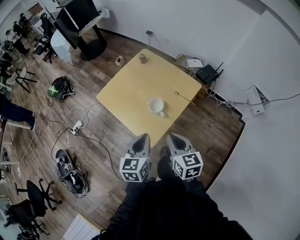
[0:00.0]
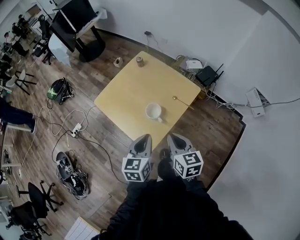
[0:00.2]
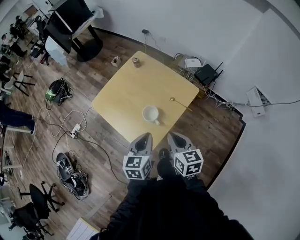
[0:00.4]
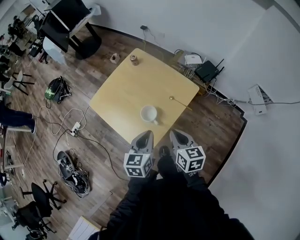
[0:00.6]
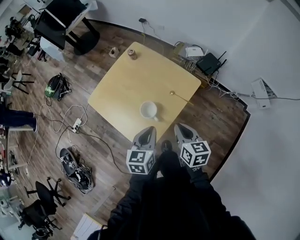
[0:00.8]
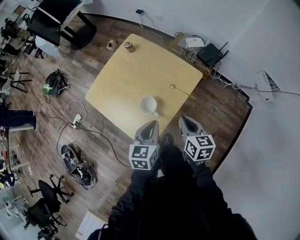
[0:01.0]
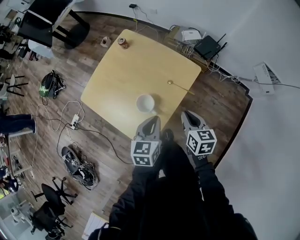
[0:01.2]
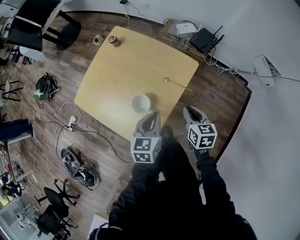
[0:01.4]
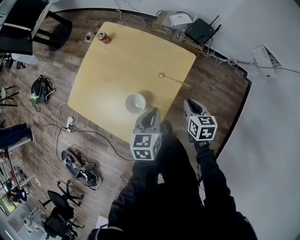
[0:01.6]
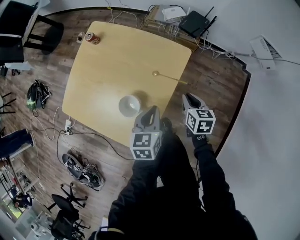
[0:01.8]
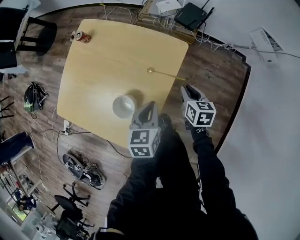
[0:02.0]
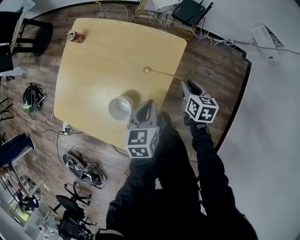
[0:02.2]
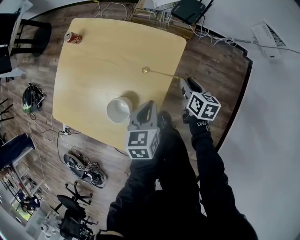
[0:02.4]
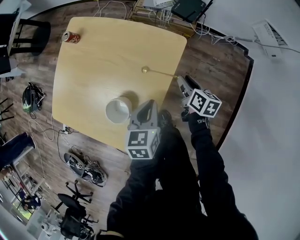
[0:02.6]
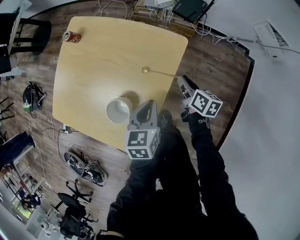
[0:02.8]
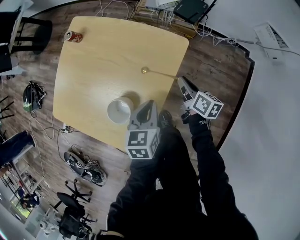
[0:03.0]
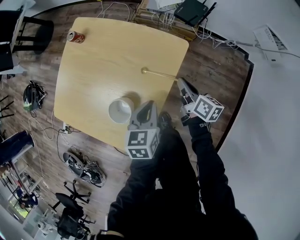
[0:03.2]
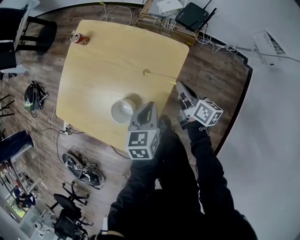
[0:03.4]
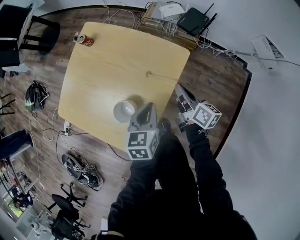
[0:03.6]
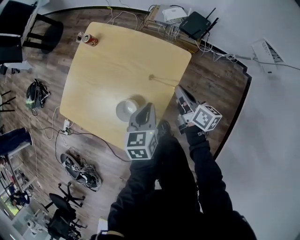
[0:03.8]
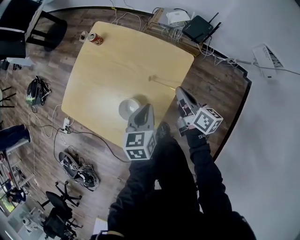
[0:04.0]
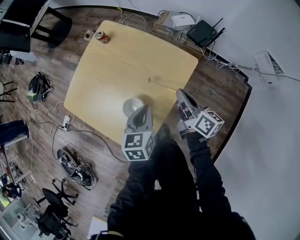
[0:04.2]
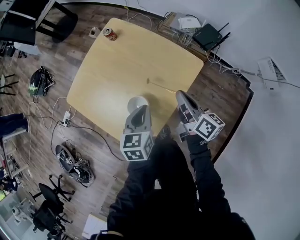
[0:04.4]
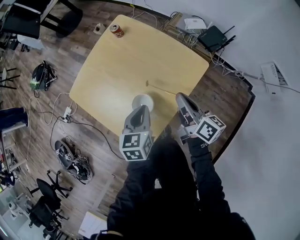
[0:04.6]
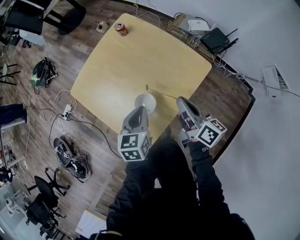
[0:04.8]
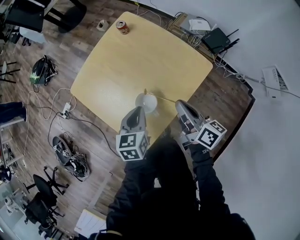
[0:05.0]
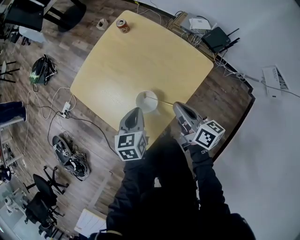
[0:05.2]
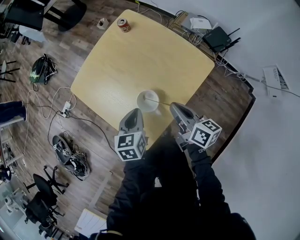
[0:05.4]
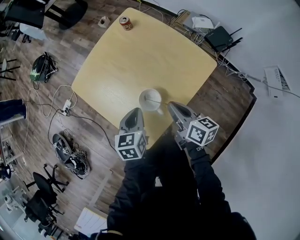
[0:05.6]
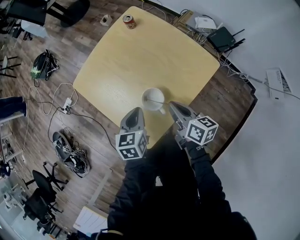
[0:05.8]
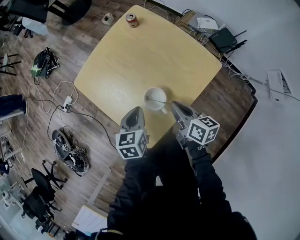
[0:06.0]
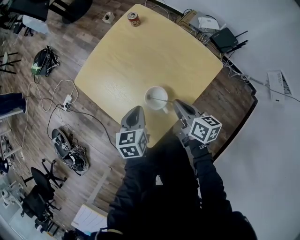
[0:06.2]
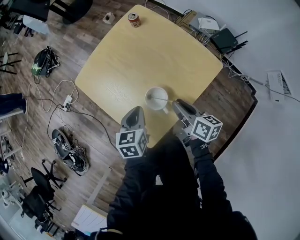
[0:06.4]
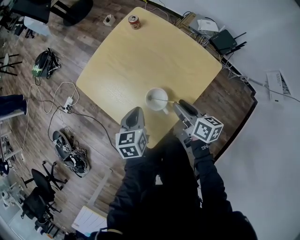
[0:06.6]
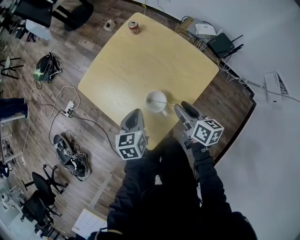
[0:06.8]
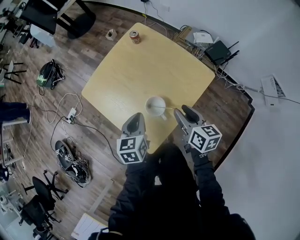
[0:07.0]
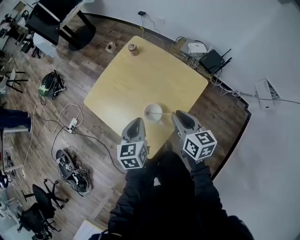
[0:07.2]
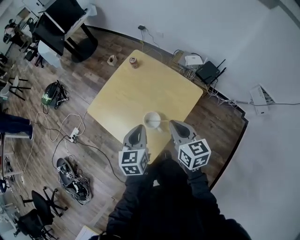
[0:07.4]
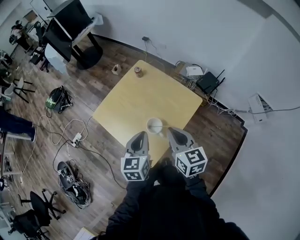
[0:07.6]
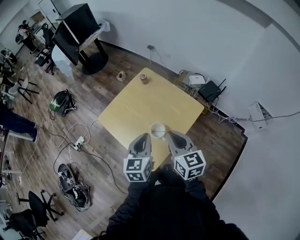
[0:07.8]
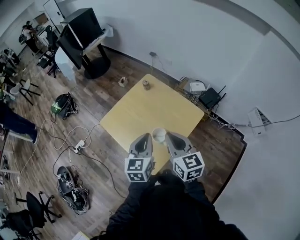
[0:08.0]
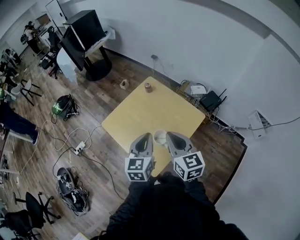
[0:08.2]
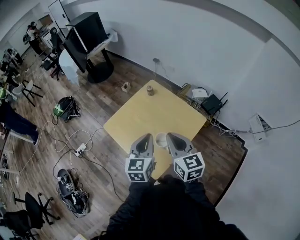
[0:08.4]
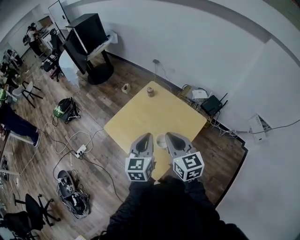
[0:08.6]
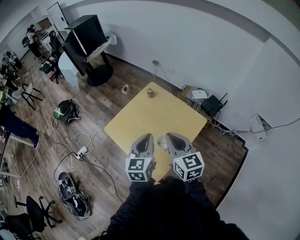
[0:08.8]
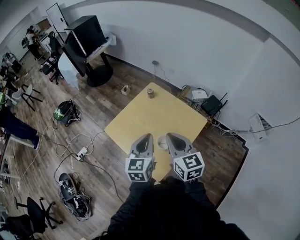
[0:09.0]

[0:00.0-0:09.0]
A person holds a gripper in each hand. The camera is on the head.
0:00.0 to 0:01.6: The left gripper goes about 30 cm forward, downward and to the right. Meanwhile the right gripper shifts about 35 cm downward, forward and to the right, and changes its angle by about 30 degrees.
0:01.6 to 0:03.0: The left gripper goes roughly 10 cm downward. The right gripper goes approximately 15 cm downward and forward, rotates roughly 40 degrees, and opens, then closes once more.
0:03.0 to 0:04.4: The left gripper travels to the left and upward by roughly 10 cm. The right gripper goes approximately 20 cm upward and to the left, and rotates roughly 20 degrees.
0:04.4 to 0:06.0: Both grippers travel together to the left, roughly 10 cm. The right gripper rotates some 20 degrees.
0:06.0 to 0:07.6: The grippers both shift upward by about 20 cm. The right gripper rotates some 30 degrees, and opens, then closes again.
0:07.6 to 0:09.0: The left gripper moves upward, about 10 cm. Meanwhile the right gripper is displaced upward and to the left by some 10 cm.

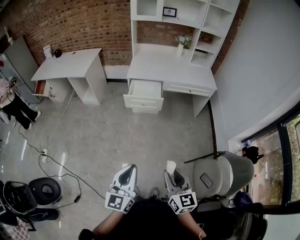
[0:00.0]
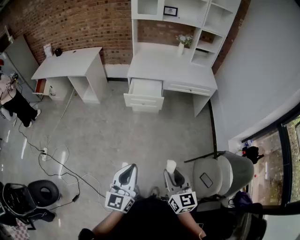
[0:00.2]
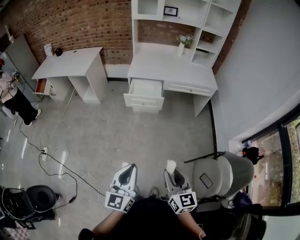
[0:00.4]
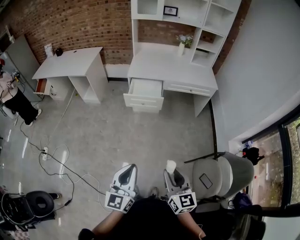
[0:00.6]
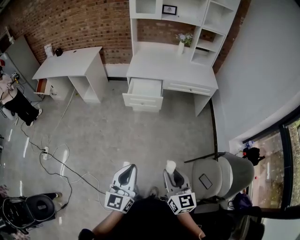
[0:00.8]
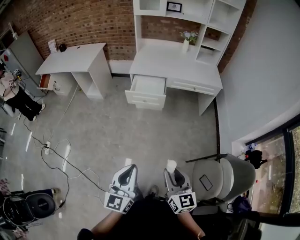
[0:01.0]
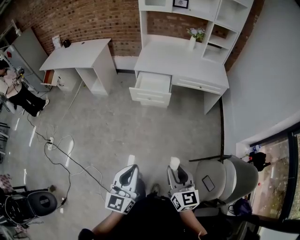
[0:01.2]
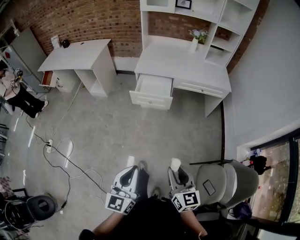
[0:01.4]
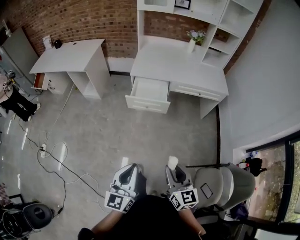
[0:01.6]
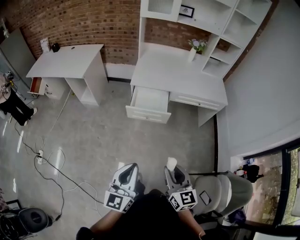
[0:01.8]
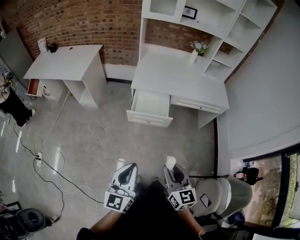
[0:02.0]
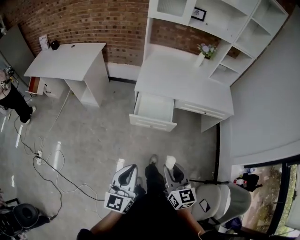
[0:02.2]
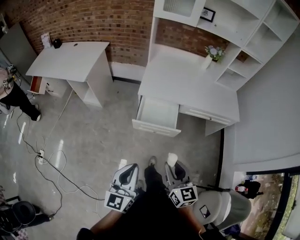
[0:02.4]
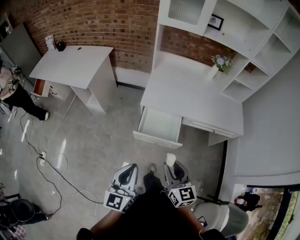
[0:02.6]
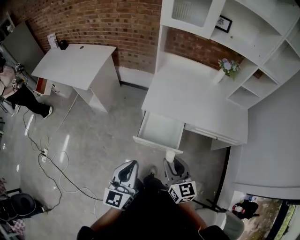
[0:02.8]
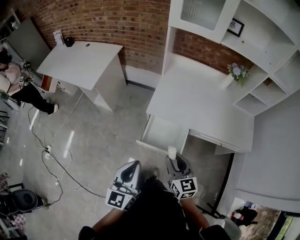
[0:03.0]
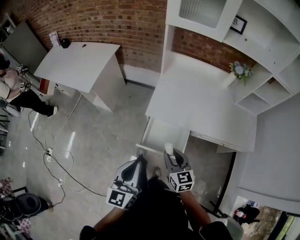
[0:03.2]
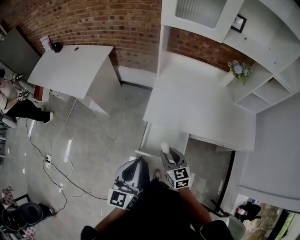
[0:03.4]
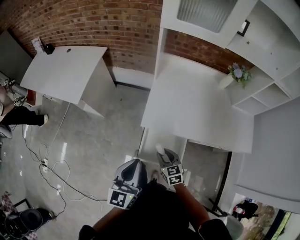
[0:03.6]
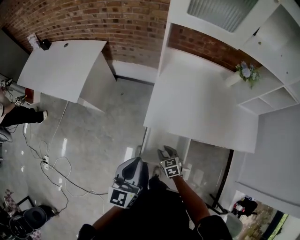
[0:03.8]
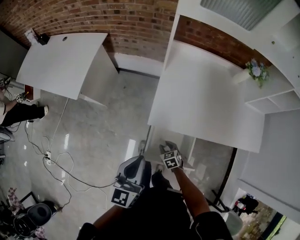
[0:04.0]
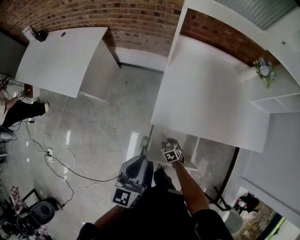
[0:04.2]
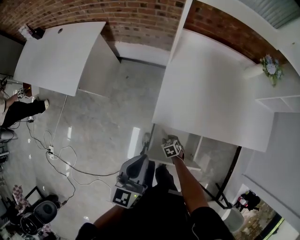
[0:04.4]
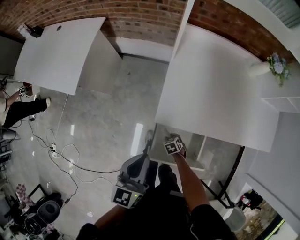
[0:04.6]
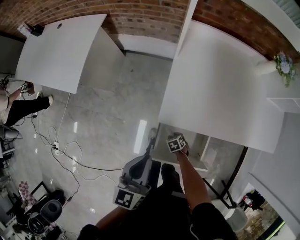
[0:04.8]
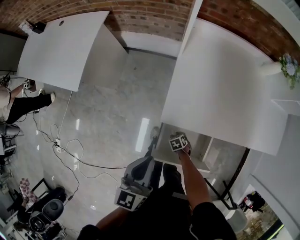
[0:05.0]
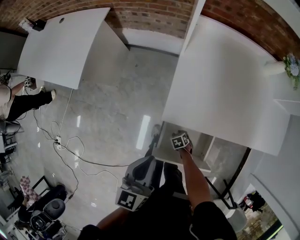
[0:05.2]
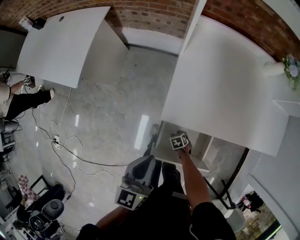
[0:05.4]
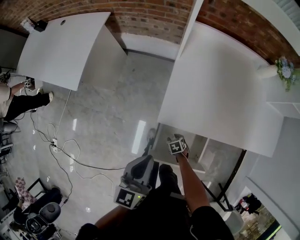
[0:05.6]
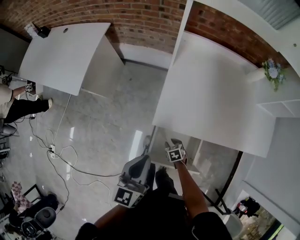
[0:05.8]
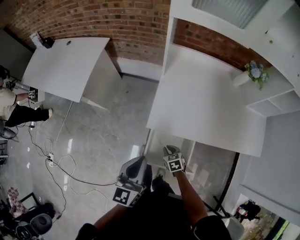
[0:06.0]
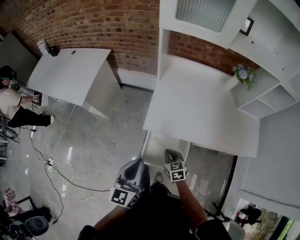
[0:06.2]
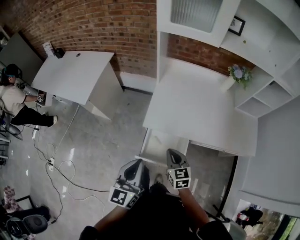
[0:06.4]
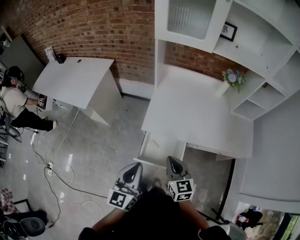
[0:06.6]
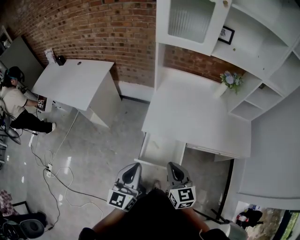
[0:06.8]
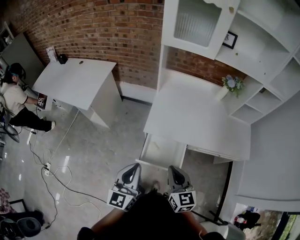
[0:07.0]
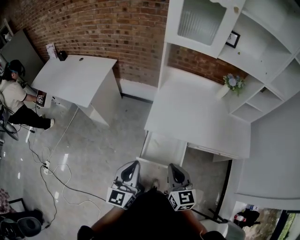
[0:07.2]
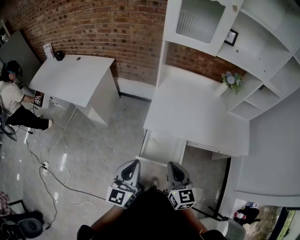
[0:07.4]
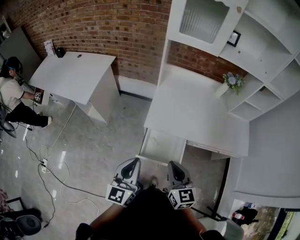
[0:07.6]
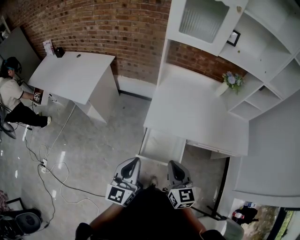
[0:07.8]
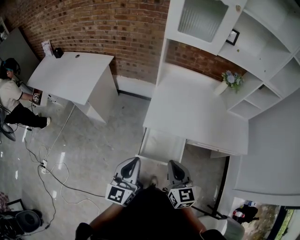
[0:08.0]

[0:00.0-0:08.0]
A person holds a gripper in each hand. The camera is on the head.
0:00.0 to 0:01.6: Both grippers move forward, approximately 15 cm.
0:01.6 to 0:03.2: The pair of grippers is taken forward, roughly 50 cm.
0:03.2 to 0:04.8: The right gripper travels downward by about 50 cm, and tilts its fingers about 50 degrees downward. Meanwhile the left gripper changes place by roughly 30 cm.
0:04.8 to 0:06.4: The left gripper moves approximately 20 cm. Meanwhile the right gripper is displaced upward by about 40 cm, tips its fingers upward by approximately 50 degrees, and closes.
0:06.4 to 0:08.0: The left gripper heads to the left, covering approximately 5 cm, while the right gripper is displaced upward and backward by some 15 cm.

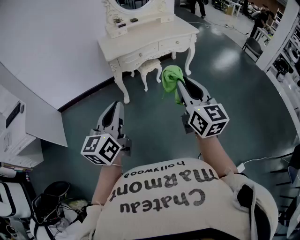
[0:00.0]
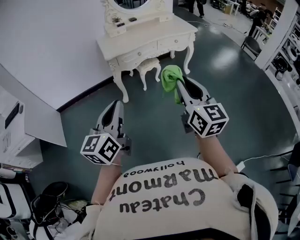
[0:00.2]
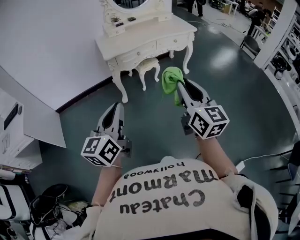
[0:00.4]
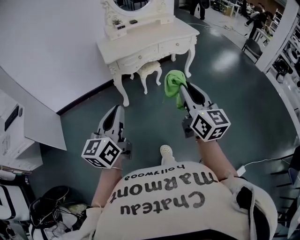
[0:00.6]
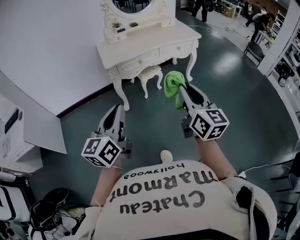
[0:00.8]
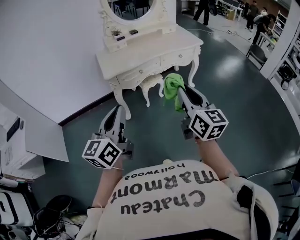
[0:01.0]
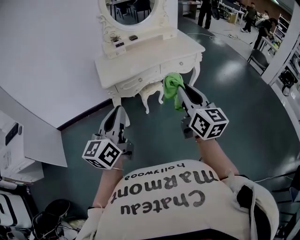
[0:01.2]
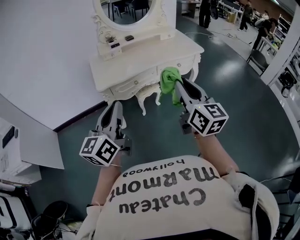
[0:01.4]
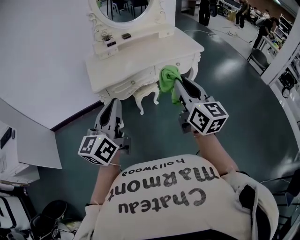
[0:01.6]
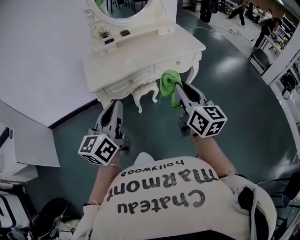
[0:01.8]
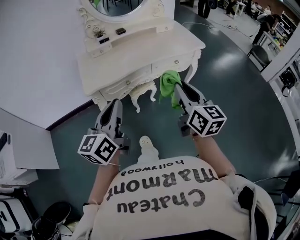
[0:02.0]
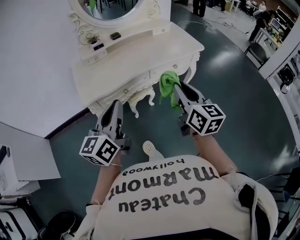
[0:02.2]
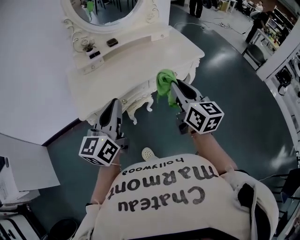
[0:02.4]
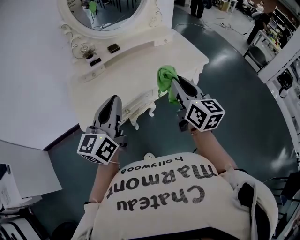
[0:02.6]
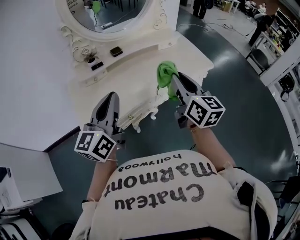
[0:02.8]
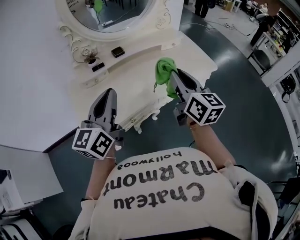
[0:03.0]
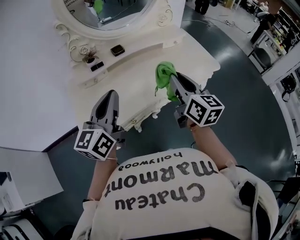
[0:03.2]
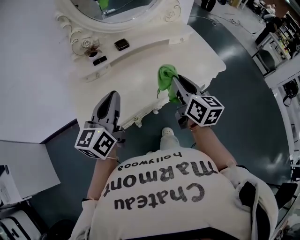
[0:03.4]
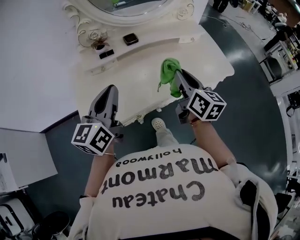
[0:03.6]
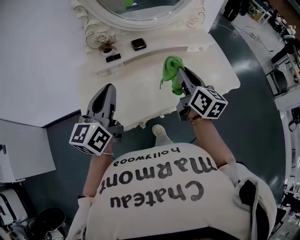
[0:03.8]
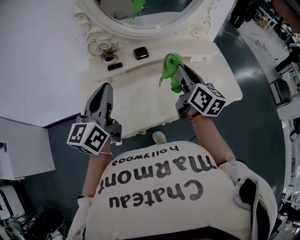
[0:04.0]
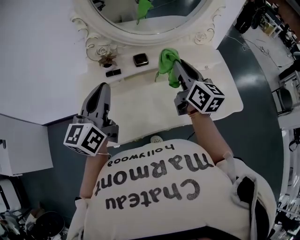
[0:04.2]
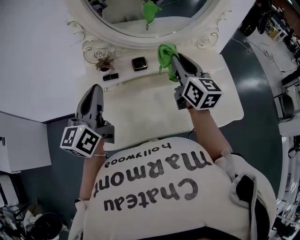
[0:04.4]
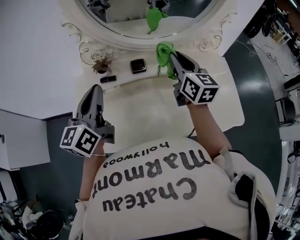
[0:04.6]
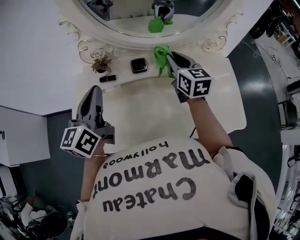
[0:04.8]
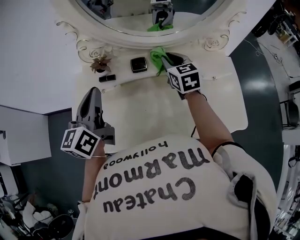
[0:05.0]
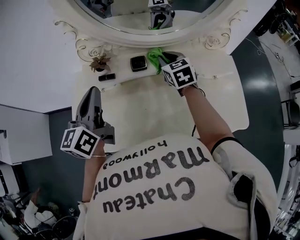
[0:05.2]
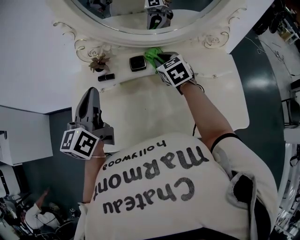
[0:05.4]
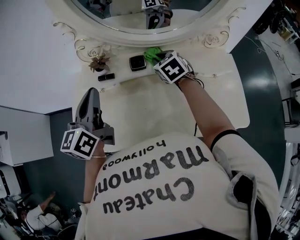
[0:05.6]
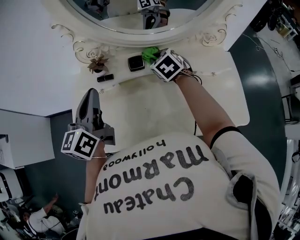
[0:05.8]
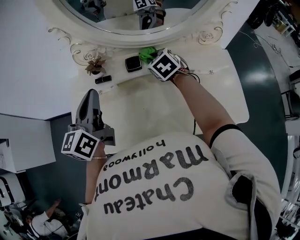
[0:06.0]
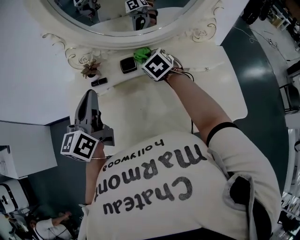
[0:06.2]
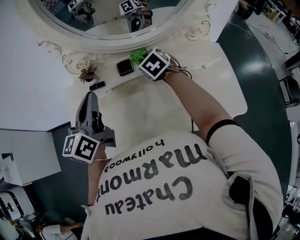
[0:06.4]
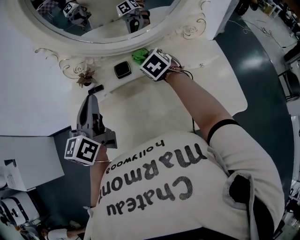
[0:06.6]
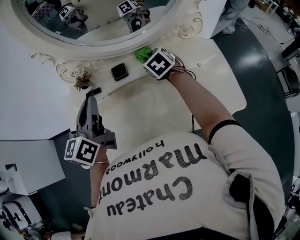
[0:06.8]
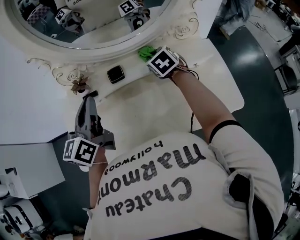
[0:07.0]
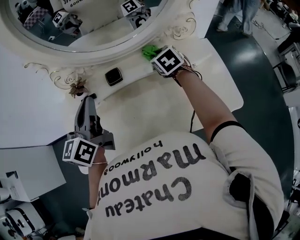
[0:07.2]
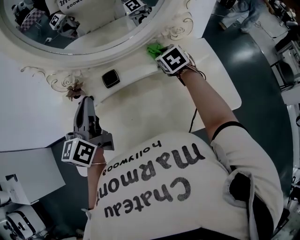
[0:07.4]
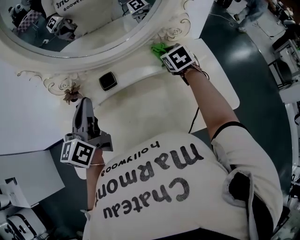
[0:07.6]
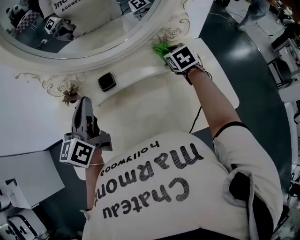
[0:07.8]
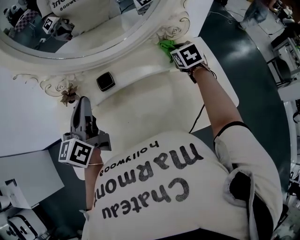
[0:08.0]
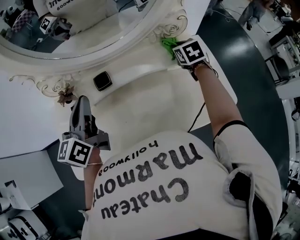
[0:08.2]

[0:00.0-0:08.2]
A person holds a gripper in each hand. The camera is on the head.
0:00.0 to 0:01.6: Both grippers travel together forward, some 30 cm.
0:01.6 to 0:03.2: Both grippers are carried forward, about 40 cm.
0:03.2 to 0:05.0: The left gripper shifts by some 20 cm, and swivels about 30 degrees. Meanwhile the right gripper swings up and down, approximately 10 cm each way, with 2 reversals, and turns by about 40 degrees.
0:05.0 to 0:06.6: The right gripper goes roughly 5 cm downward, and changes its angle by about 20 degrees.
0:06.6 to 0:08.2: The right gripper travels to the right by about 25 cm, and changes its angle by about 30 degrees; the left gripper moves forward, some 5 cm.
